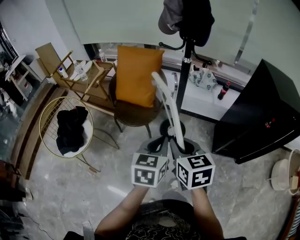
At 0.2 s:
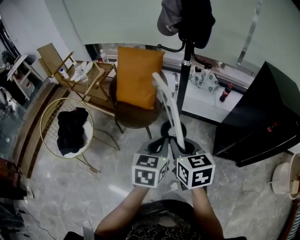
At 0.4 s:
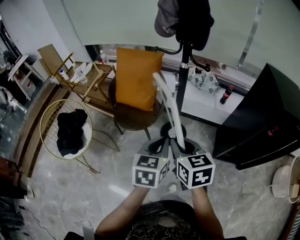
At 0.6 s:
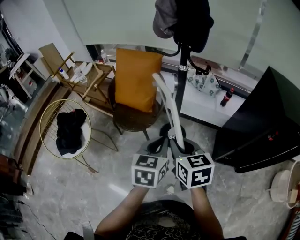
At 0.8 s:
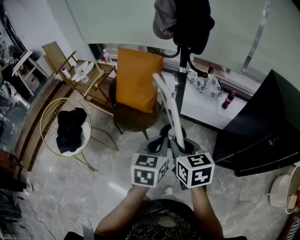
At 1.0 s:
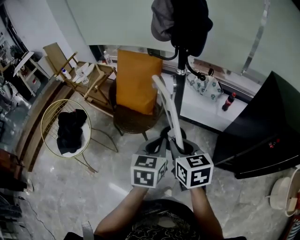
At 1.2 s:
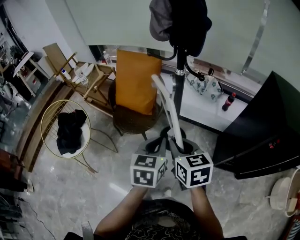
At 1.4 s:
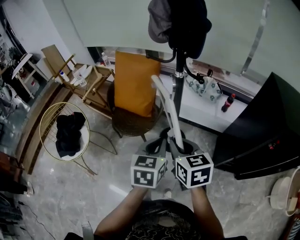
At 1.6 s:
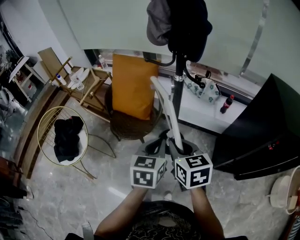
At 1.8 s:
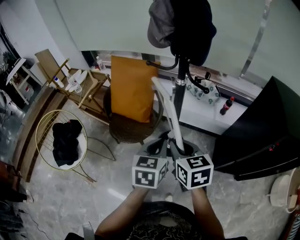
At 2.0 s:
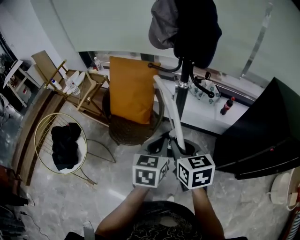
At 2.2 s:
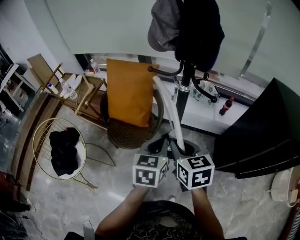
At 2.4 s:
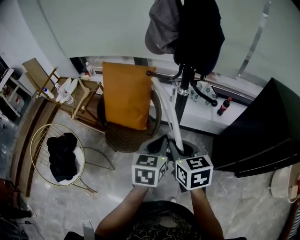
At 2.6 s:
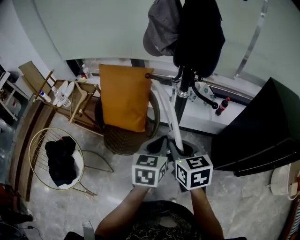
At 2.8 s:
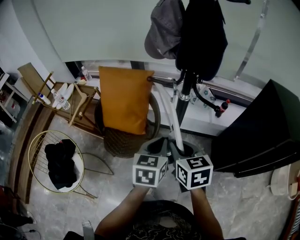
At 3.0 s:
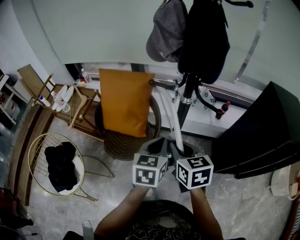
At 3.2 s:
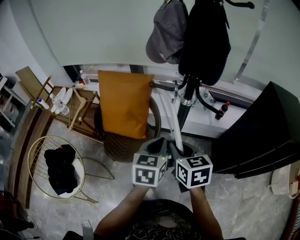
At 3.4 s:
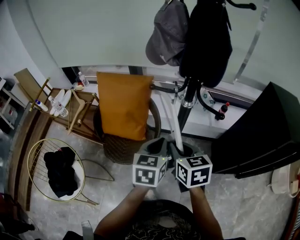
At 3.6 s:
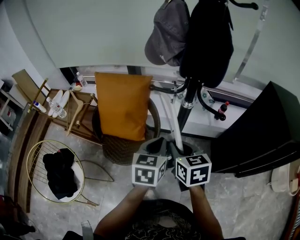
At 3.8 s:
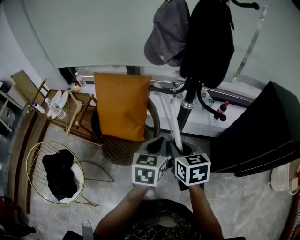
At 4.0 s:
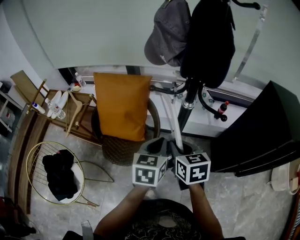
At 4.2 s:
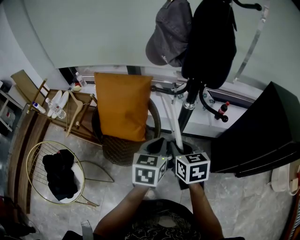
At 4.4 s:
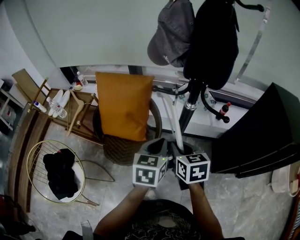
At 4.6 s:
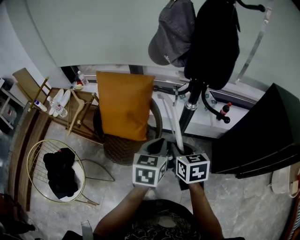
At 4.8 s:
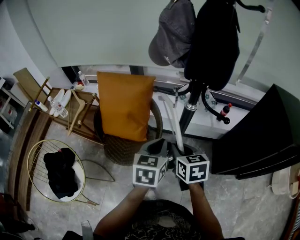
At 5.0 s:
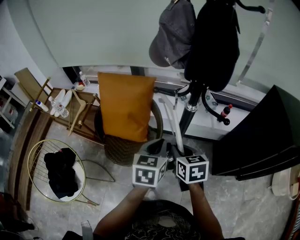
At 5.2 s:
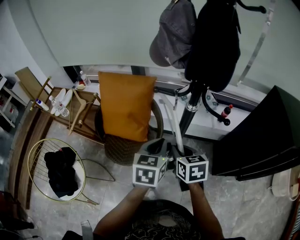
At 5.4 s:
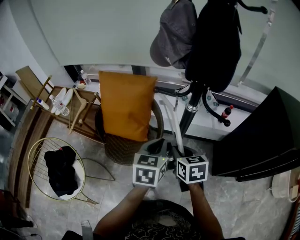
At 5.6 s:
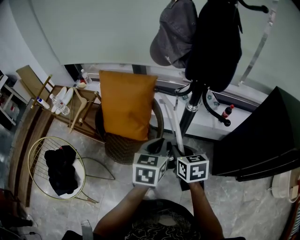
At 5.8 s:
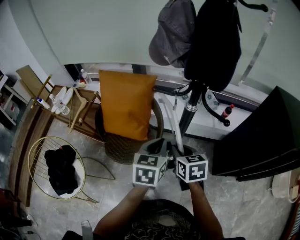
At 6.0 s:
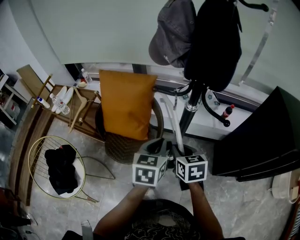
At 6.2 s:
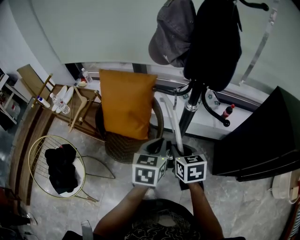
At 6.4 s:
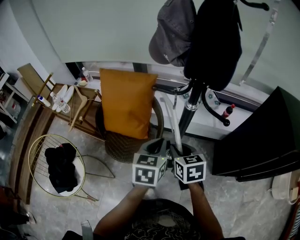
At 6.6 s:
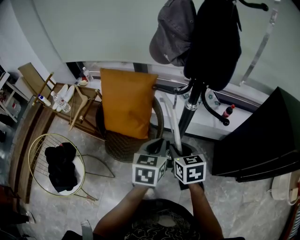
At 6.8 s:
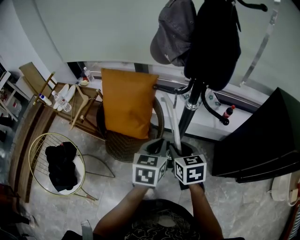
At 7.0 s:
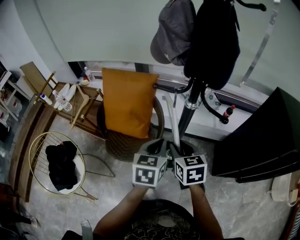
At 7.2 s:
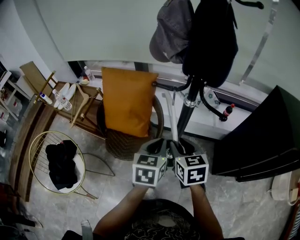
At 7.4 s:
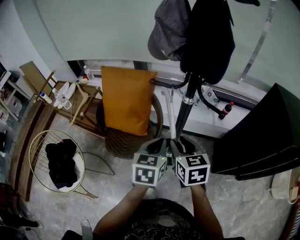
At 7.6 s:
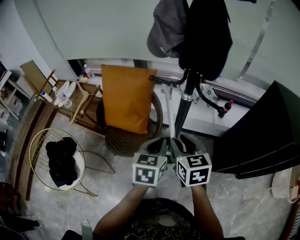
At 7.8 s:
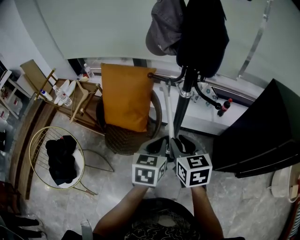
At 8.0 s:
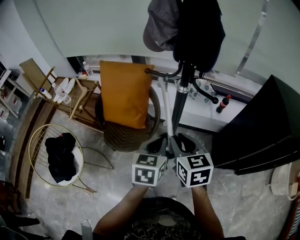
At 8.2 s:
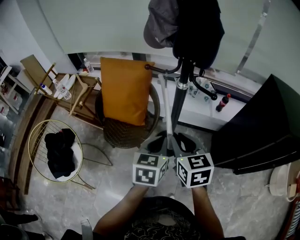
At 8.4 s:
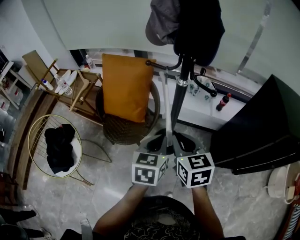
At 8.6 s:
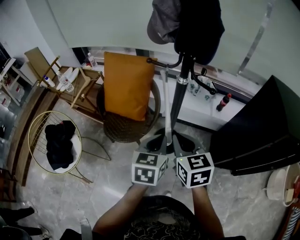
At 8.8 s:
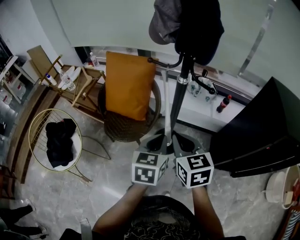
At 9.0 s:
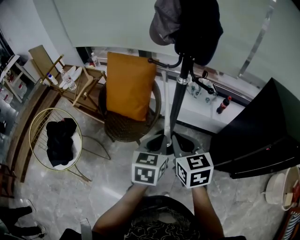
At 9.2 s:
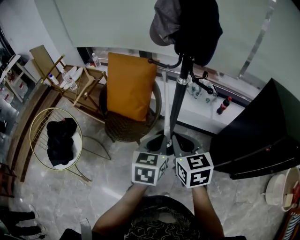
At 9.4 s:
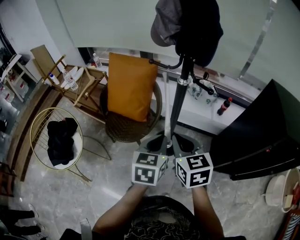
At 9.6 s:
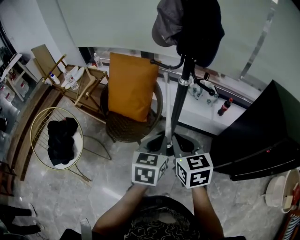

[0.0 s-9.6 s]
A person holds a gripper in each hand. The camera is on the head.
0.0 to 1.6 s: Both grippers travel together forward and to the right, about 15 cm.
1.6 to 3.2 s: The right gripper moves forward and to the left, about 15 cm, while the left gripper shifts approximately 15 cm forward.
3.2 to 4.8 s: The right gripper shifts by roughly 5 cm.
4.8 to 6.4 s: The grippers make only small movements.
6.4 to 8.0 s: The left gripper shifts some 5 cm backward. The right gripper goes about 10 cm upward and backward.
8.0 to 9.6 s: Both grippers move backward, about 5 cm. The right gripper closes.

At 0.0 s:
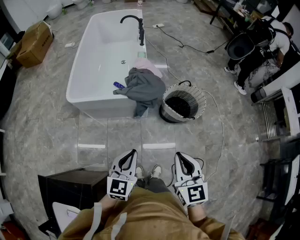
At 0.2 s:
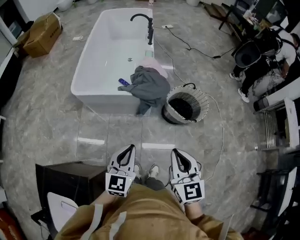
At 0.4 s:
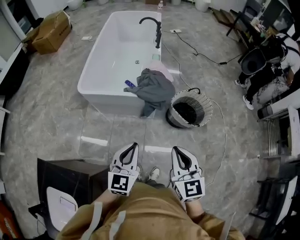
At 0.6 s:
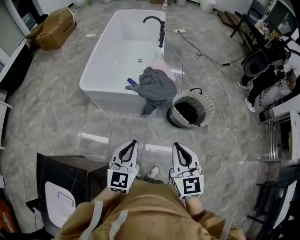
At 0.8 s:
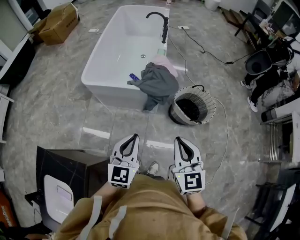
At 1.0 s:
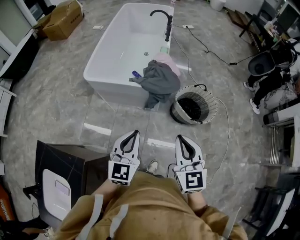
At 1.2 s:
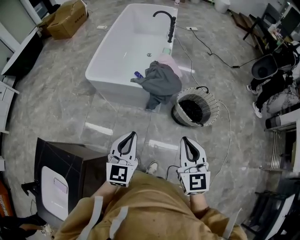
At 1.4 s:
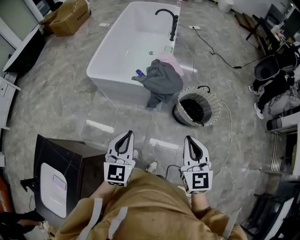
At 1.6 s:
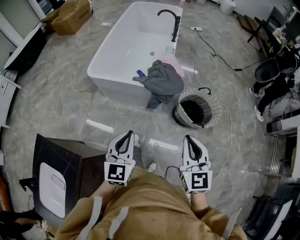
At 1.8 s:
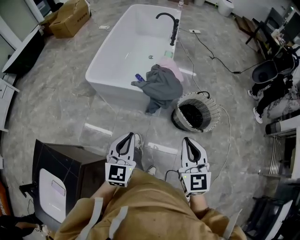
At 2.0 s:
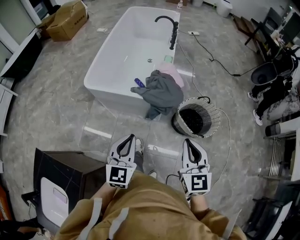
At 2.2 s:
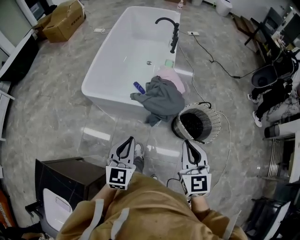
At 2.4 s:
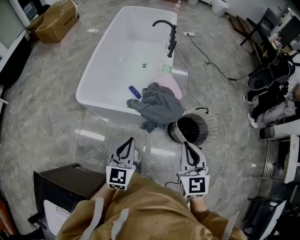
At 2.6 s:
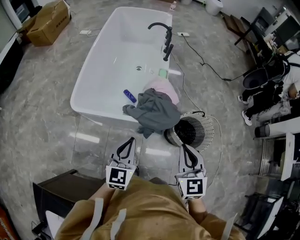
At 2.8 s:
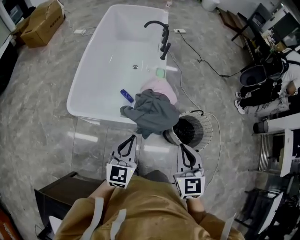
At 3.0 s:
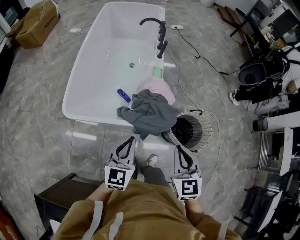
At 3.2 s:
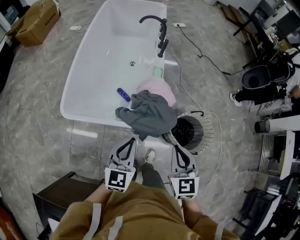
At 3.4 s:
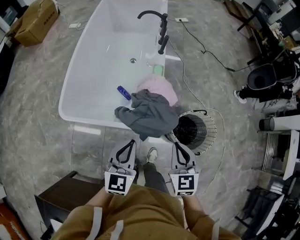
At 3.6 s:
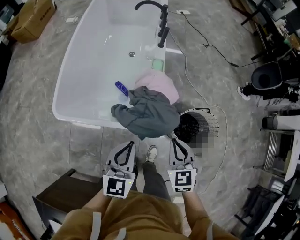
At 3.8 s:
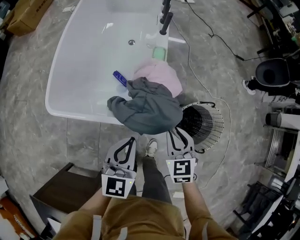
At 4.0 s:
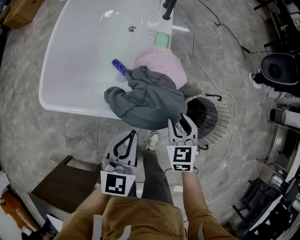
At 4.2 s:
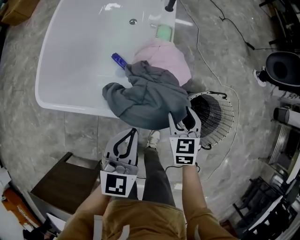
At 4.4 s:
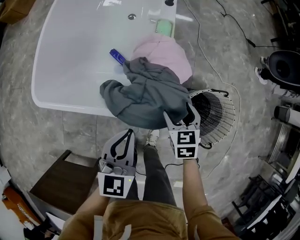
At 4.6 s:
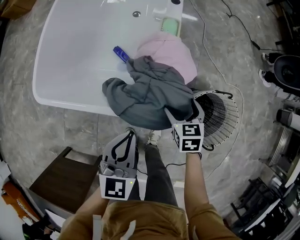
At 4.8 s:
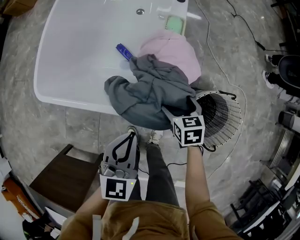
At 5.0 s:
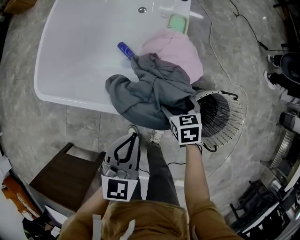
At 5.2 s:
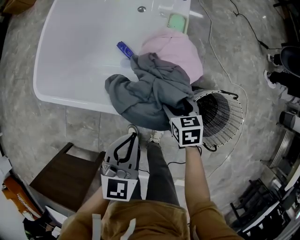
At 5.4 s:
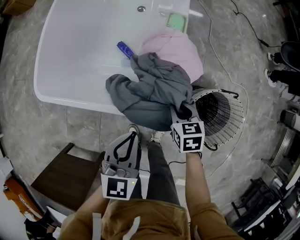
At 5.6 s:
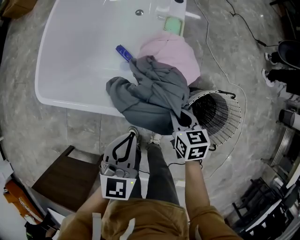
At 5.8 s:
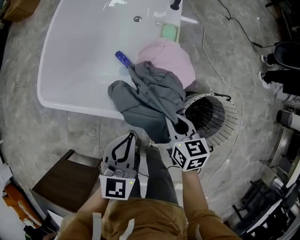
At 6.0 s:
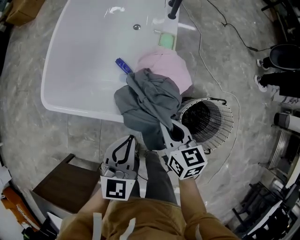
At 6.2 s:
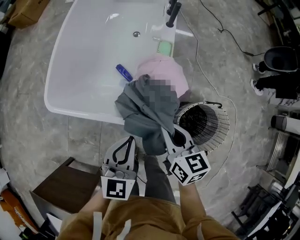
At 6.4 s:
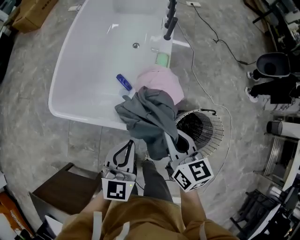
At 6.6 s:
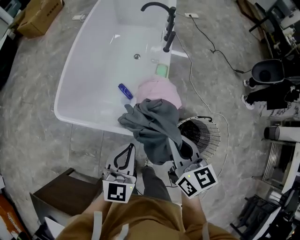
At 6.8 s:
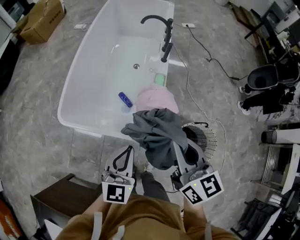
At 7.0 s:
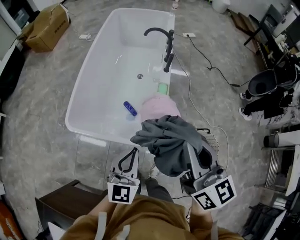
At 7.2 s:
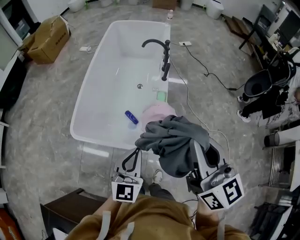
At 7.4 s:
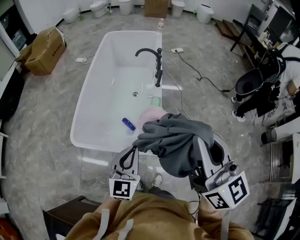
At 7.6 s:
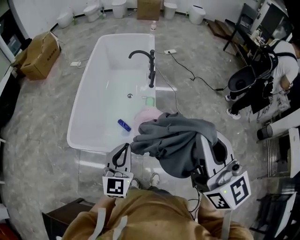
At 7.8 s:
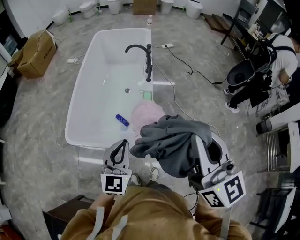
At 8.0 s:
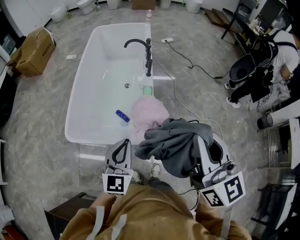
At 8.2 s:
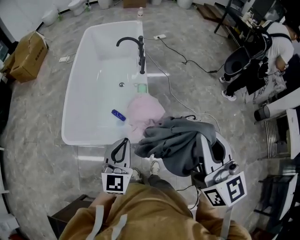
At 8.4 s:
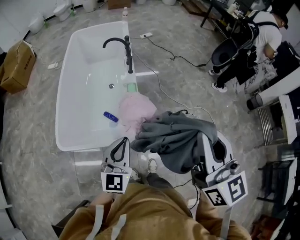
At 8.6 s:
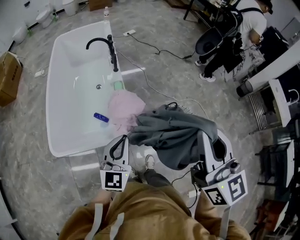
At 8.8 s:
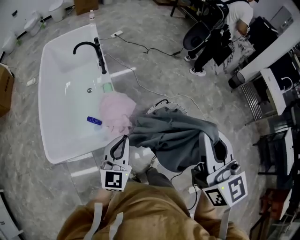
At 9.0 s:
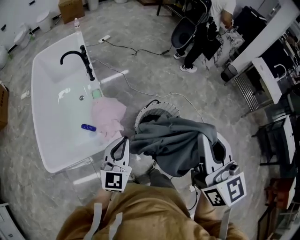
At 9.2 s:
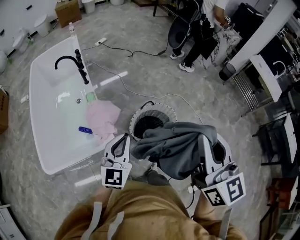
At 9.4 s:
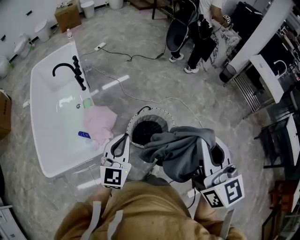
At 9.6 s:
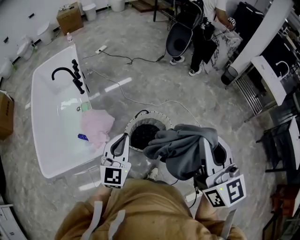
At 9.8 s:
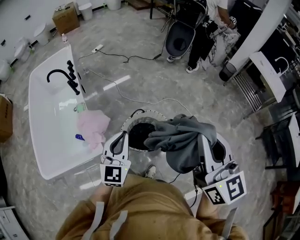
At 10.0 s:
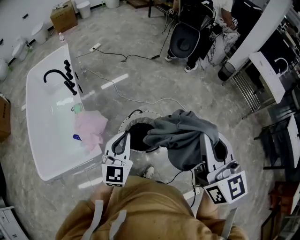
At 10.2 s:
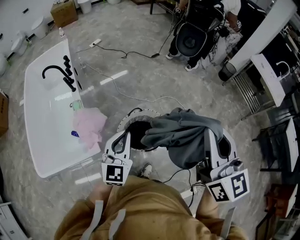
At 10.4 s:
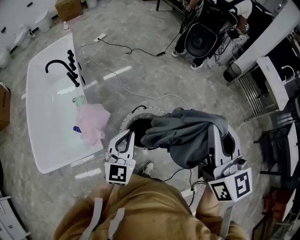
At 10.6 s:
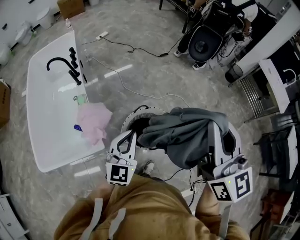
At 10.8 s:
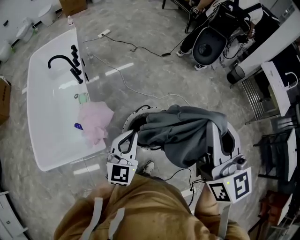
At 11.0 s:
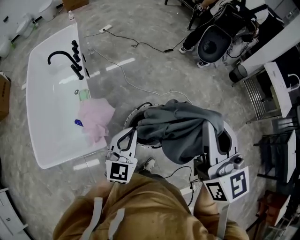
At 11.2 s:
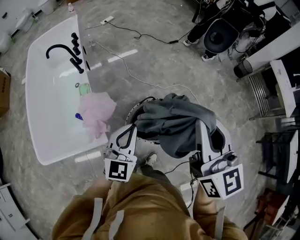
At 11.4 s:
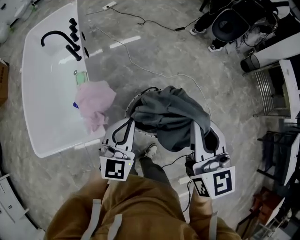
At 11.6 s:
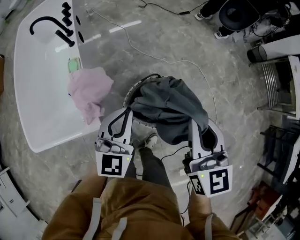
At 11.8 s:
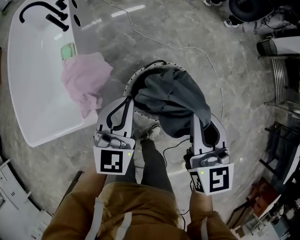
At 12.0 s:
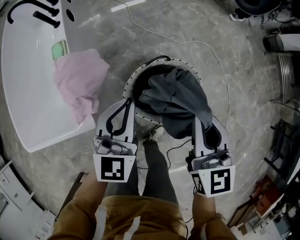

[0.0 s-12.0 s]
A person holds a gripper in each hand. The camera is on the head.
0.0 to 1.6 s: The right gripper goes some 10 cm to the right and forward; the left gripper swivels roughly 20 degrees.
1.6 to 3.0 s: Both grippers move forward, about 30 cm.
3.0 to 4.4 s: The left gripper shifts roughly 20 cm downward and forward. The right gripper moves downward and forward, approximately 40 cm, changes its angle by about 30 degrees, and opens.
4.4 to 6.0 s: The right gripper goes approximately 15 cm upward and to the left, rotates some 30 degrees, and closes its fingers.
6.0 to 7.6 s: The left gripper goes roughly 25 cm upward, and changes its angle by about 20 degrees. Meanwhile the right gripper goes about 50 cm upward, and tips its fingers upward by approximately 40 degrees.
7.6 to 9.0 s: The right gripper changes place by some 20 cm, and swivels approximately 40 degrees; the left gripper ends up some 20 cm from where it was, and changes its angle by roughly 30 degrees.
9.0 to 10.4 s: Both grippers move to the right and forward, roughly 25 cm.
10.4 to 12.0 s: The right gripper is displaced downward by roughly 40 cm, and swivels about 30 degrees. Meanwhile the left gripper shifts roughly 25 cm downward and forward.

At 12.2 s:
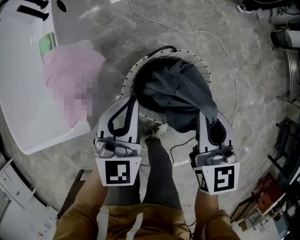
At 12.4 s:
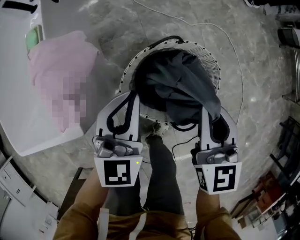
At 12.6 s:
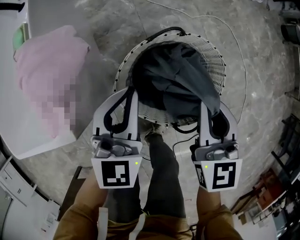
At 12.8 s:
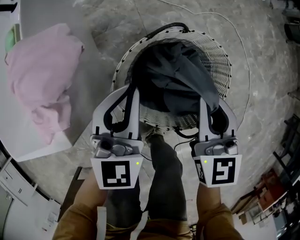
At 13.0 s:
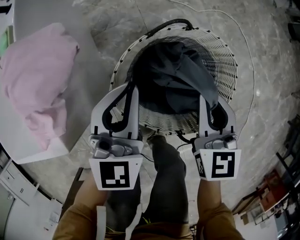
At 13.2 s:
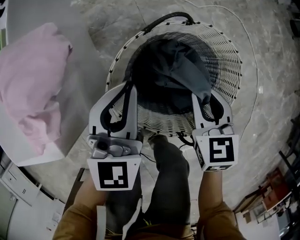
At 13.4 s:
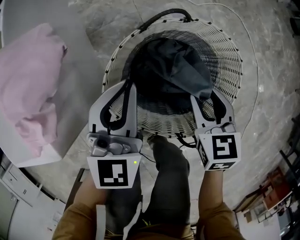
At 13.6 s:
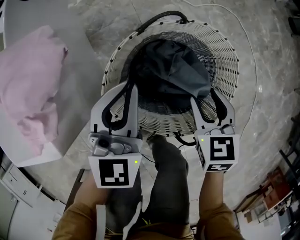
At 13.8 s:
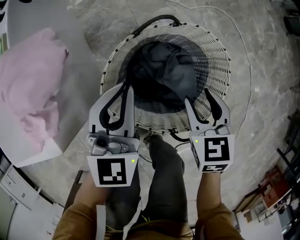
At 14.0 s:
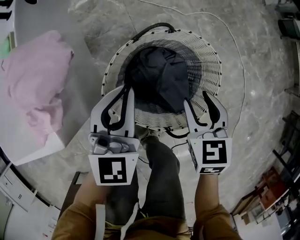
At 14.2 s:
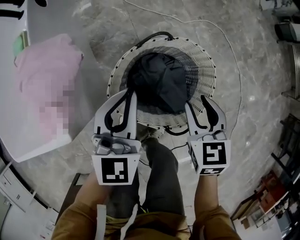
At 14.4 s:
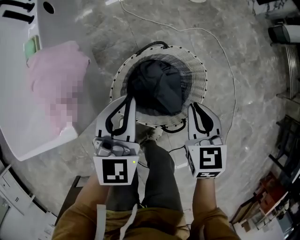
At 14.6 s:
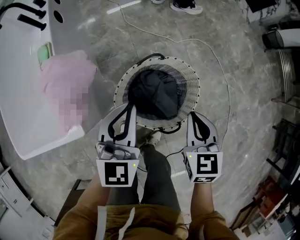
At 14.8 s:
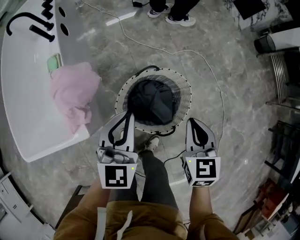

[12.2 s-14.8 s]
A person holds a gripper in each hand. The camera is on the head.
12.2 to 13.4 s: The right gripper travels downward by about 30 cm, and turns by some 20 degrees; the left gripper goes about 20 cm downward.
13.4 to 14.8 s: The two grippers go about 30 cm upward. The right gripper closes.
